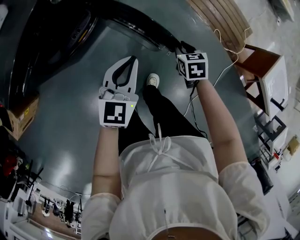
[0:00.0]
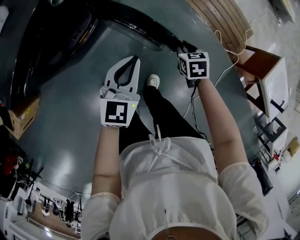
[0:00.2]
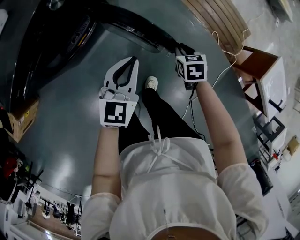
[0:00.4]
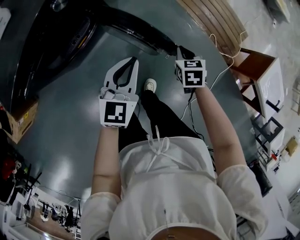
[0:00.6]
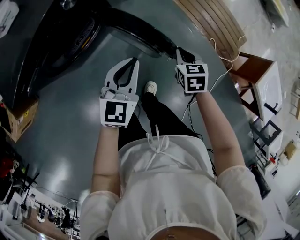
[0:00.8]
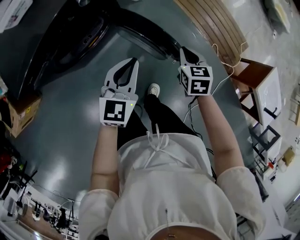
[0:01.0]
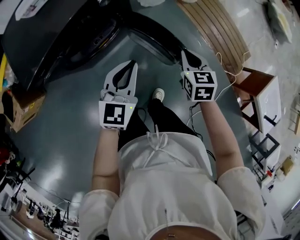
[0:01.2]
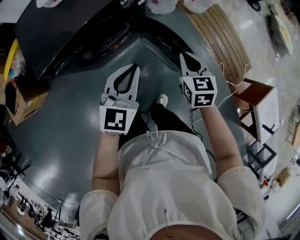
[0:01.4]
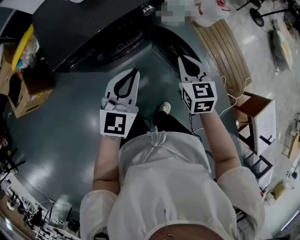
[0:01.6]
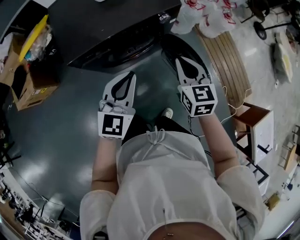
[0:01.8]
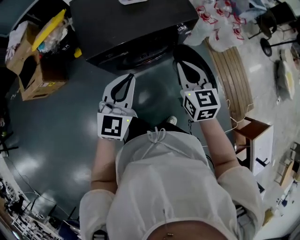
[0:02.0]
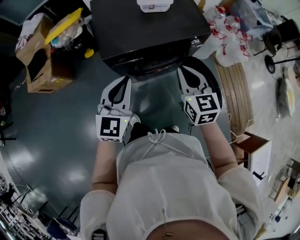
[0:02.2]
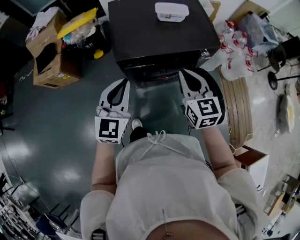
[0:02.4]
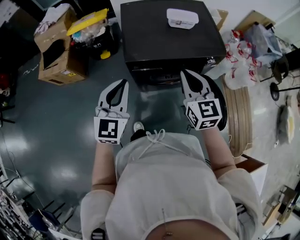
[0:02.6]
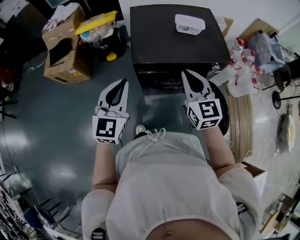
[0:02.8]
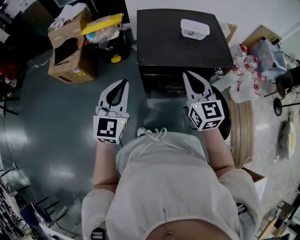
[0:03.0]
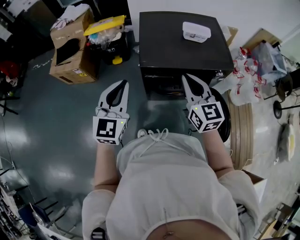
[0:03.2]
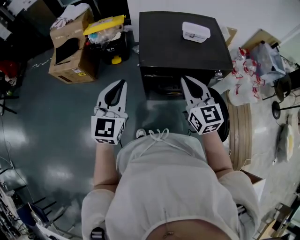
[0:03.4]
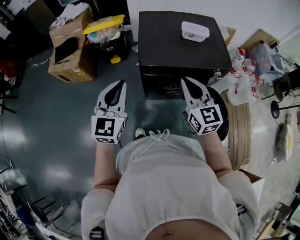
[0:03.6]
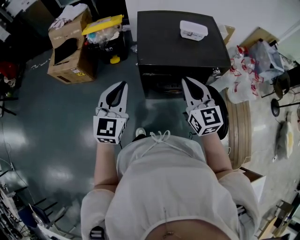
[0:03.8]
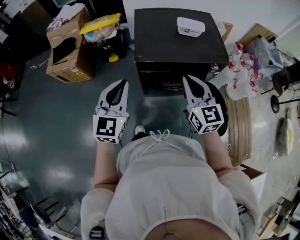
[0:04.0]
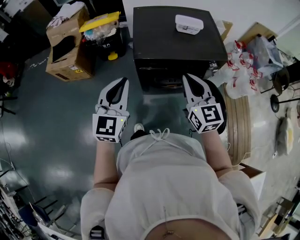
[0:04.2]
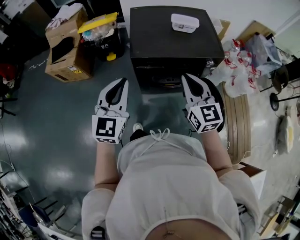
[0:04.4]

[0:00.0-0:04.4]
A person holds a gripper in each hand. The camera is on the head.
0:00.0 to 0:01.4: The right gripper shifts about 30 cm upward and to the left, and swivels some 30 degrees. Meanwhile the left gripper travels to the left and upward by approximately 20 cm.
0:01.4 to 0:03.0: The two grippers travel together, approximately 40 cm. The right gripper turns by roughly 50 degrees; the left gripper swivels roughly 40 degrees.
0:03.0 to 0:04.4: Both grippers move backward, approximately 5 cm.

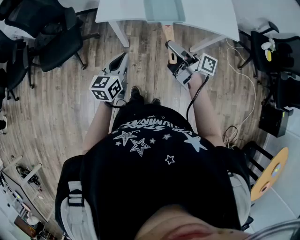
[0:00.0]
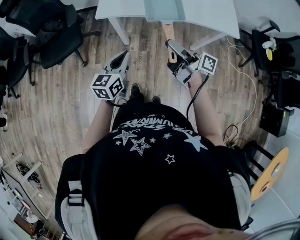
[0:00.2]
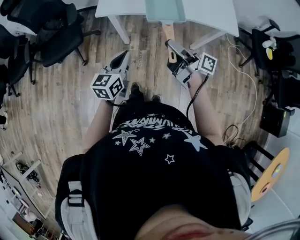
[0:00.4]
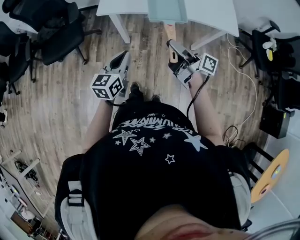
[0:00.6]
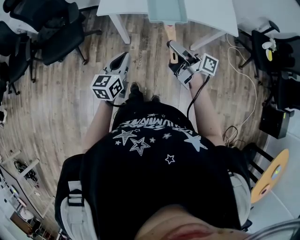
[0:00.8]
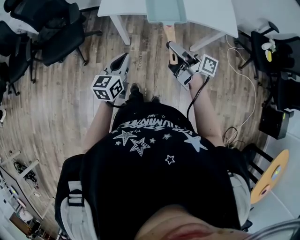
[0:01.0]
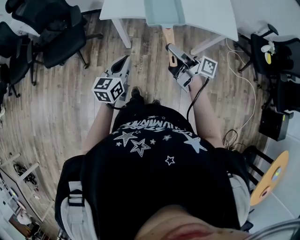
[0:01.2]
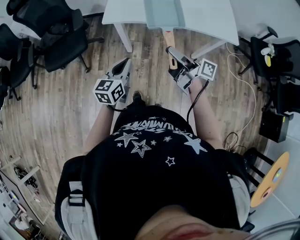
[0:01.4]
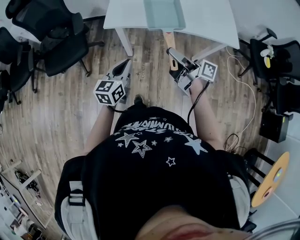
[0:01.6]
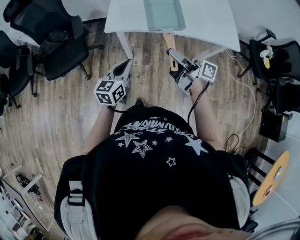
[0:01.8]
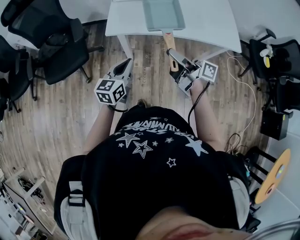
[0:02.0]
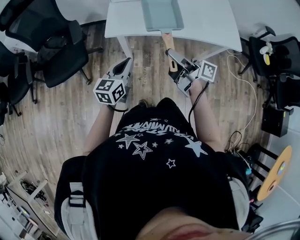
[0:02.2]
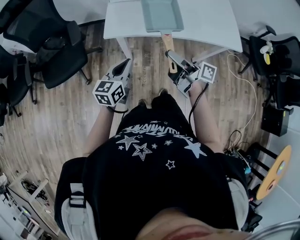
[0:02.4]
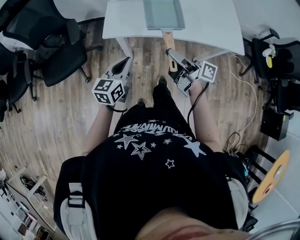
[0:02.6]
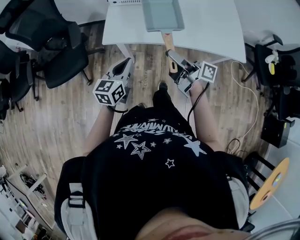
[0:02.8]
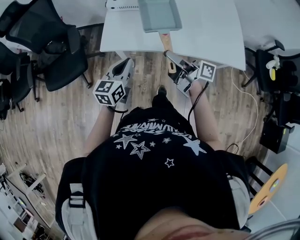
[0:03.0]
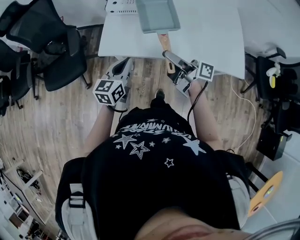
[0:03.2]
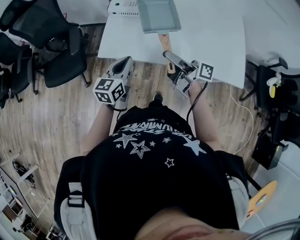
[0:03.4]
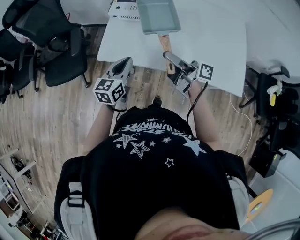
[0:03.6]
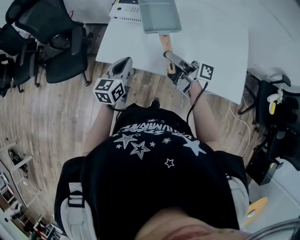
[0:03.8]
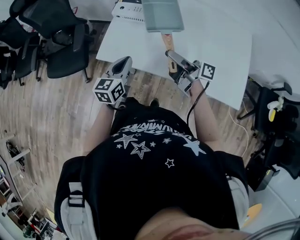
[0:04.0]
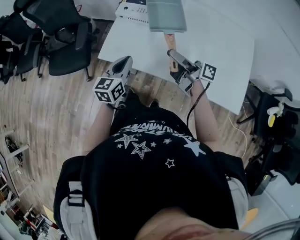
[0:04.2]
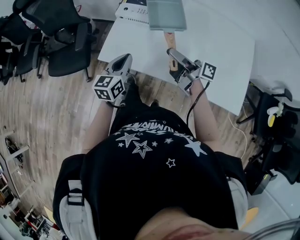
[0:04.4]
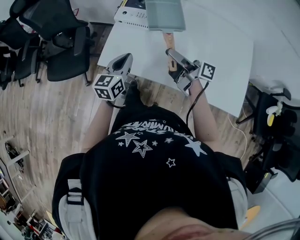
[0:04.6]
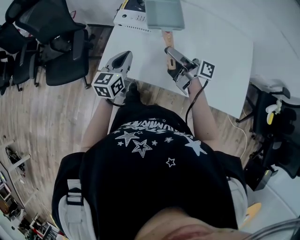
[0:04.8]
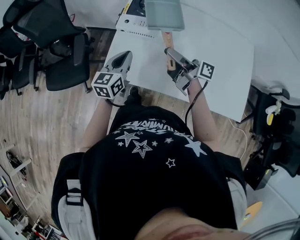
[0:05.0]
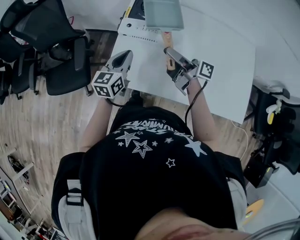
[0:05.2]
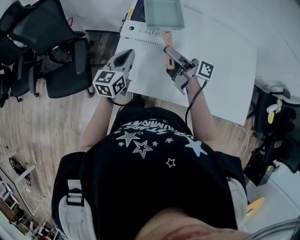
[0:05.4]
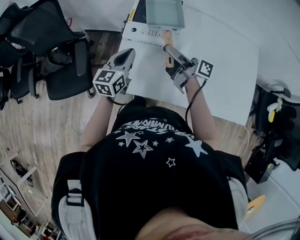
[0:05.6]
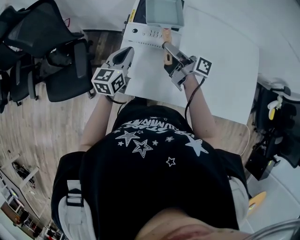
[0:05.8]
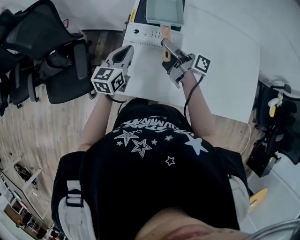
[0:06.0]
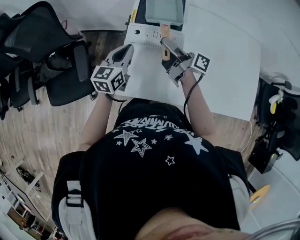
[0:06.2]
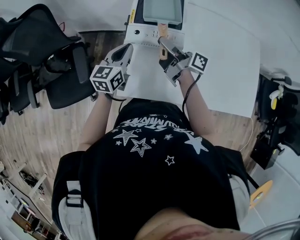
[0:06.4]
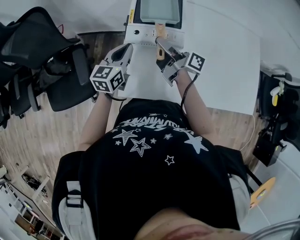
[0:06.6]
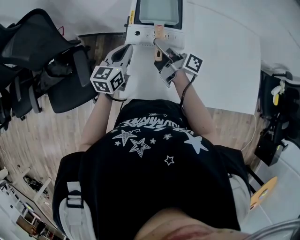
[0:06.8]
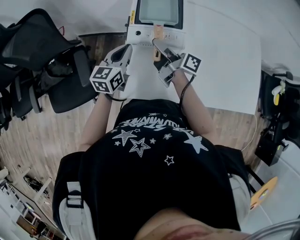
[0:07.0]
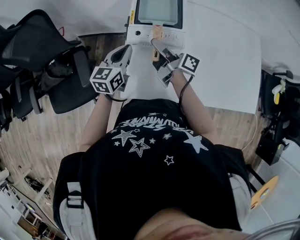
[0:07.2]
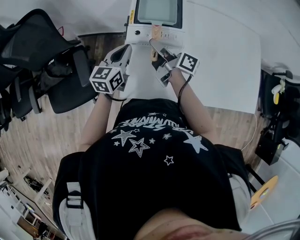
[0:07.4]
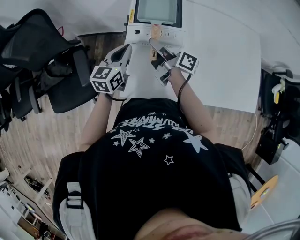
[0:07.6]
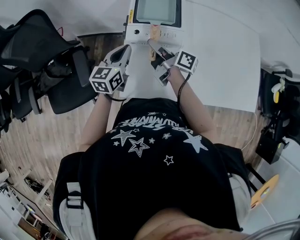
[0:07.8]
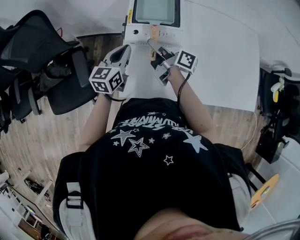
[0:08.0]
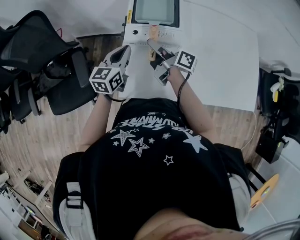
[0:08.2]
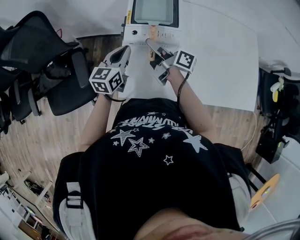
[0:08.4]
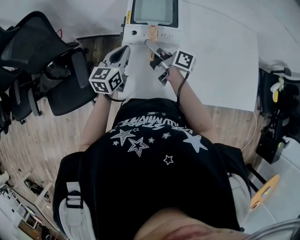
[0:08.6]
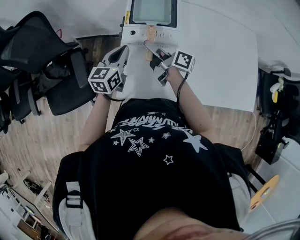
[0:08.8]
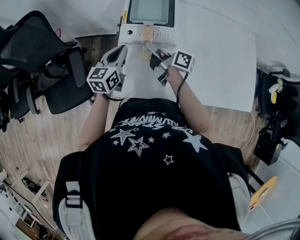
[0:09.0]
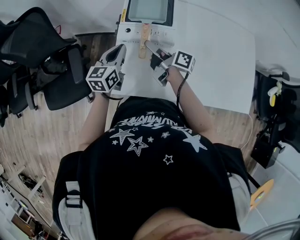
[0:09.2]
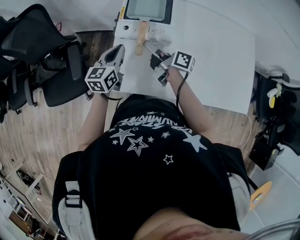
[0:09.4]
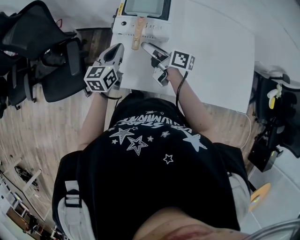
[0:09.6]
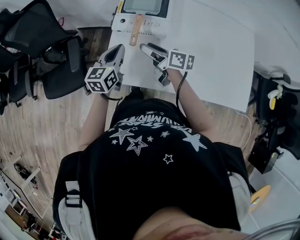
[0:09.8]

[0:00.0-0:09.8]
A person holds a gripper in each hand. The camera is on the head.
0:00.0 to 0:01.4: The grippers make only small movements.
0:01.4 to 0:02.8: Both grippers travel together forward, roughly 15 cm.
0:02.8 to 0:04.2: The grippers both shift forward and to the right by about 20 cm.
0:04.2 to 0:05.6: The grippers both shift forward by about 20 cm.
0:05.6 to 0:07.0: The left gripper heads forward, covering about 5 cm; the right gripper moves to the left and forward, about 10 cm.
0:07.0 to 0:08.4: There are only small adjustments of the grippers.
0:08.4 to 0:09.8: Both grippers travel together backward, roughly 10 cm. The right gripper changes its angle by approximately 30 degrees.

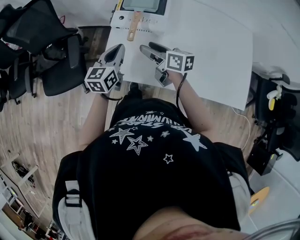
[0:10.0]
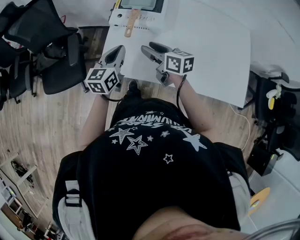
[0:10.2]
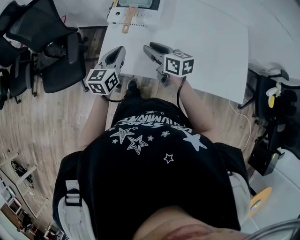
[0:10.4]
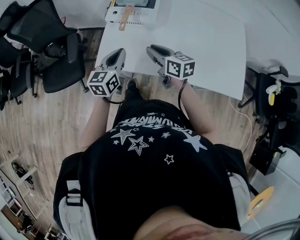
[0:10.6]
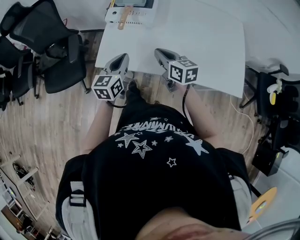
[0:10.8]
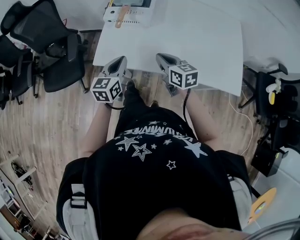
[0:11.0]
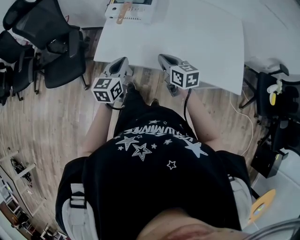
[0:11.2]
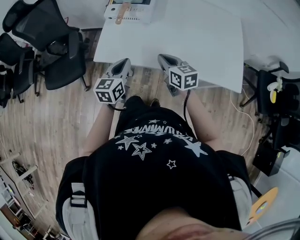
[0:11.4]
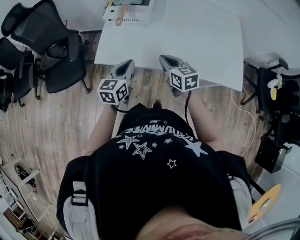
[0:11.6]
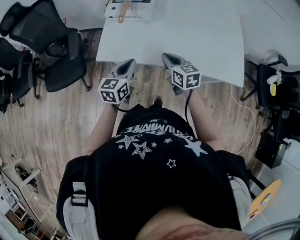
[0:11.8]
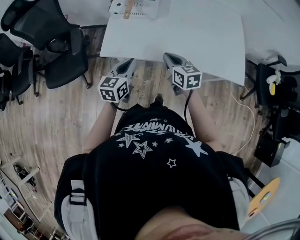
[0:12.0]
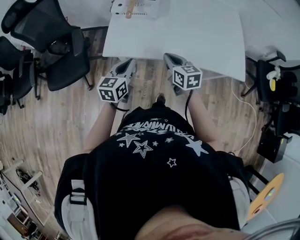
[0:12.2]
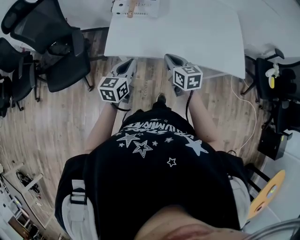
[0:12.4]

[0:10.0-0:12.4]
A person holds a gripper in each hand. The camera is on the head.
0:10.0 to 0:11.2: The right gripper moves backward and to the right, some 20 cm, rotates roughly 20 degrees, and closes; the left gripper is displaced backward by roughly 20 cm.
0:11.2 to 0:12.4: The left gripper moves to the left and backward, approximately 5 cm. The right gripper shifts roughly 10 cm backward and to the left.

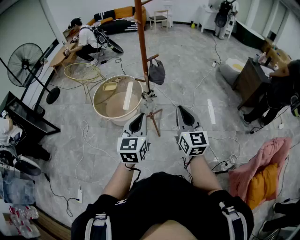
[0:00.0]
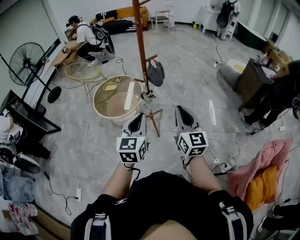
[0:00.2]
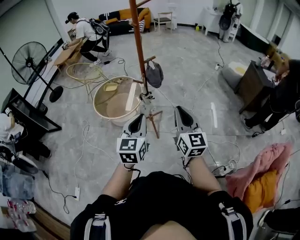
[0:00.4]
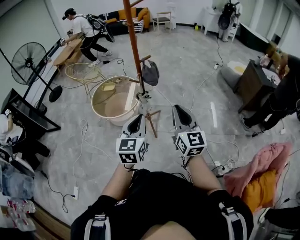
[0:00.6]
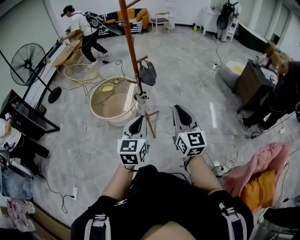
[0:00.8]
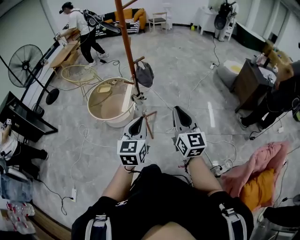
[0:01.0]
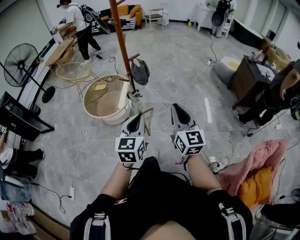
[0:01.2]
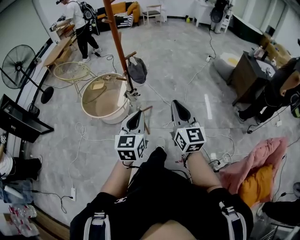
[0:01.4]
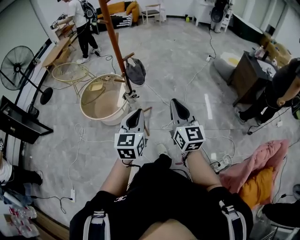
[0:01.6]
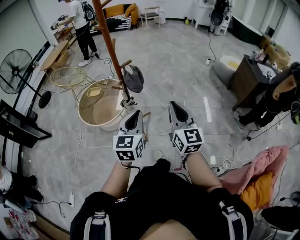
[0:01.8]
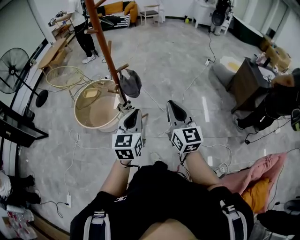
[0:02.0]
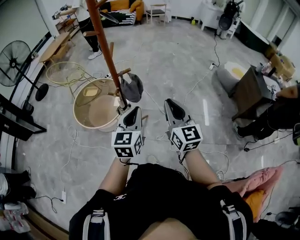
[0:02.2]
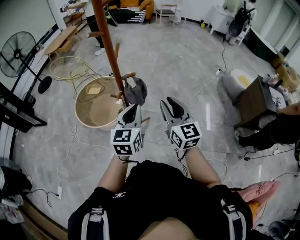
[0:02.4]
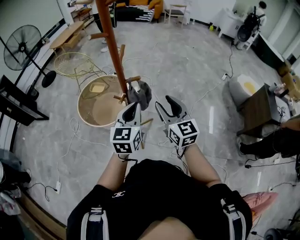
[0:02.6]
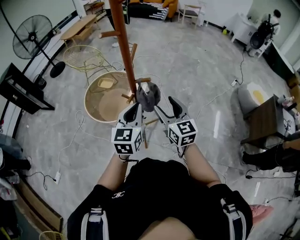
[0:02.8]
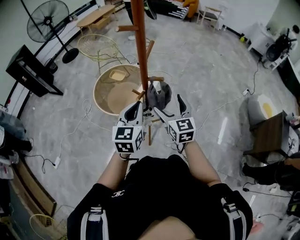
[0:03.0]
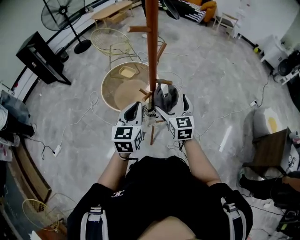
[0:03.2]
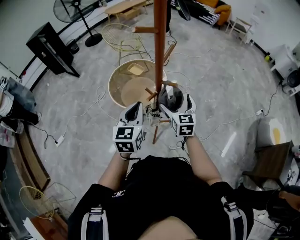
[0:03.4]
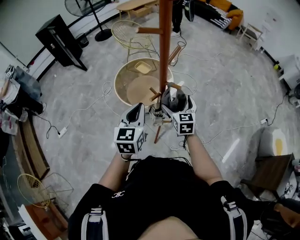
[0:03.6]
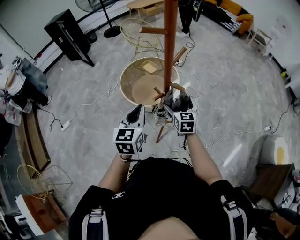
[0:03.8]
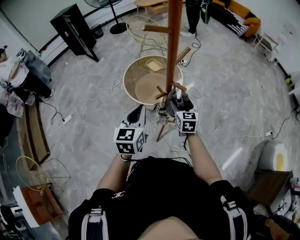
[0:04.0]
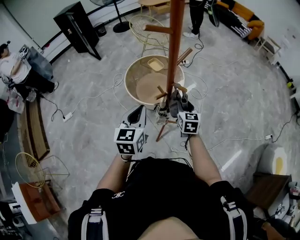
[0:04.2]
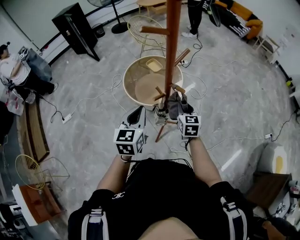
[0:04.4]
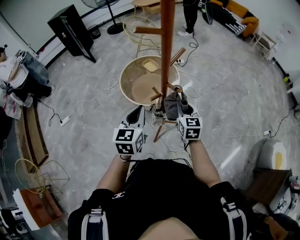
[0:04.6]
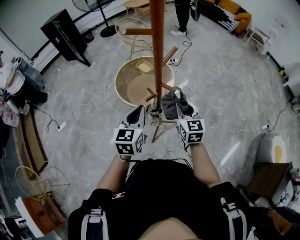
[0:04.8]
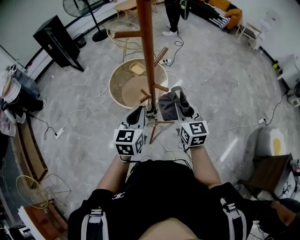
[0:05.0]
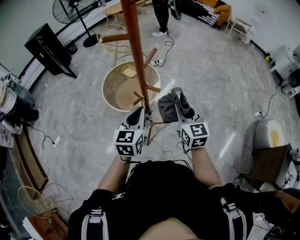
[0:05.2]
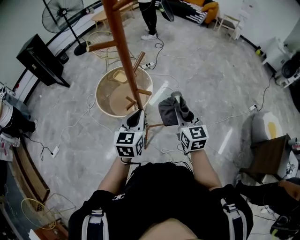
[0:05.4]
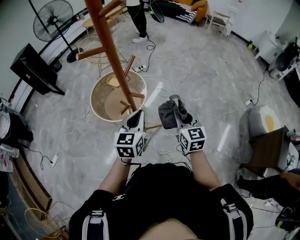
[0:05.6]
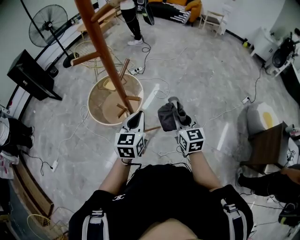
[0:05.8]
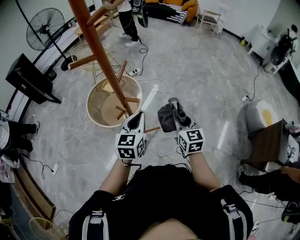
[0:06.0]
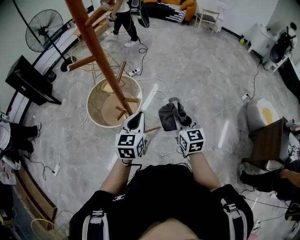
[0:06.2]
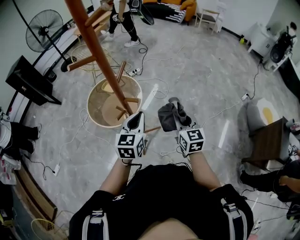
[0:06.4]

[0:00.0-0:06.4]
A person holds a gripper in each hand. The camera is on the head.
0:00.0 to 0:01.6: Both grippers move to the right and forward, about 15 cm.
0:01.6 to 0:03.2: The left gripper moves some 35 cm, and turns by some 30 degrees. The right gripper moves about 50 cm, changes its angle by approximately 40 degrees, and opens up.
0:03.2 to 0:04.8: The right gripper reaches about 5 cm downward, then returns, and closes its fingers.
0:04.8 to 0:06.4: Both grippers move to the right, about 15 cm. The left gripper rotates roughly 20 degrees.
